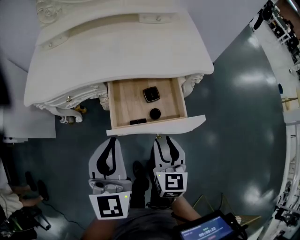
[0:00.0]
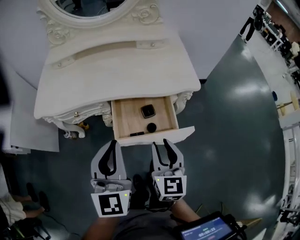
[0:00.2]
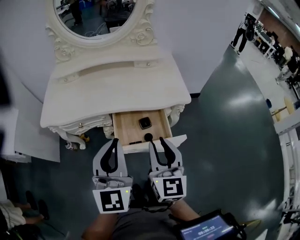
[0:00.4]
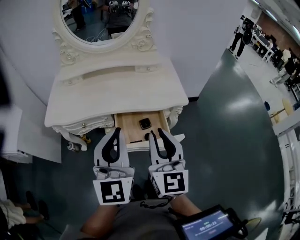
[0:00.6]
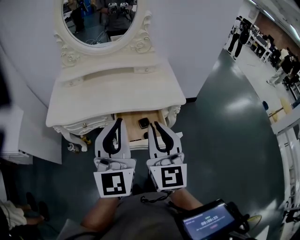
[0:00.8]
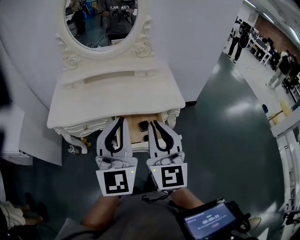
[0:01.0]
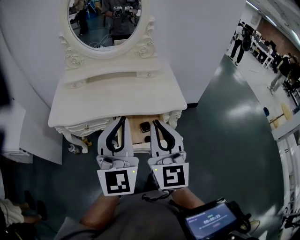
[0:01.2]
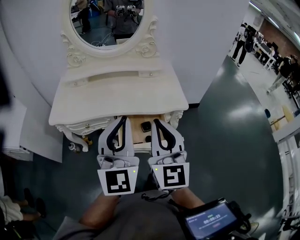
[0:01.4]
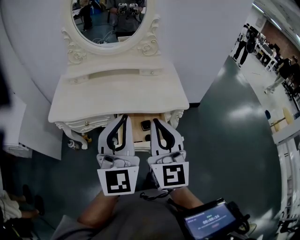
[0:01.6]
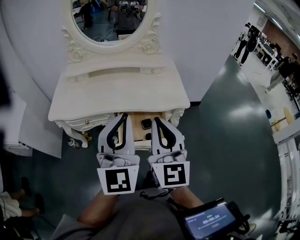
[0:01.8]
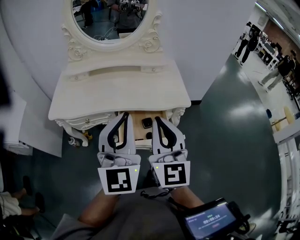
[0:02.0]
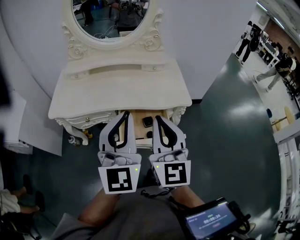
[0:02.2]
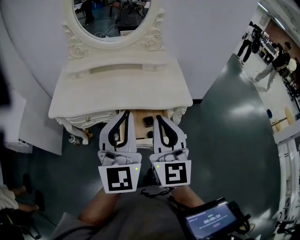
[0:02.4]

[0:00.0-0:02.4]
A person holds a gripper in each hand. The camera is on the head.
0:00.0 to 0:01.2: The two grippers go some 30 cm upward. The right gripper tilts its fingers approximately 30 degrees upward, and closes its fingers; the left gripper changes its angle by approximately 20 degrees.
0:01.2 to 0:02.4: The grippers make only small movements.

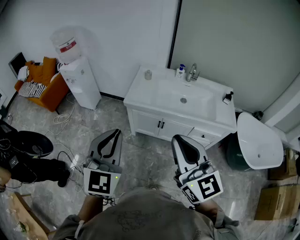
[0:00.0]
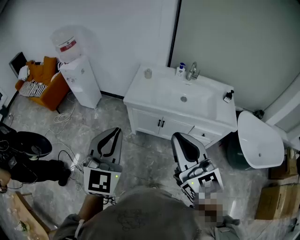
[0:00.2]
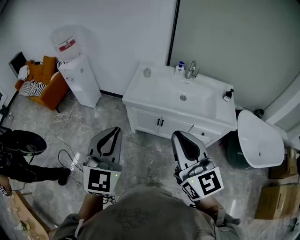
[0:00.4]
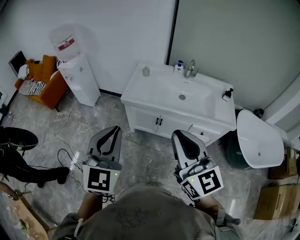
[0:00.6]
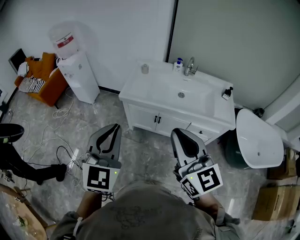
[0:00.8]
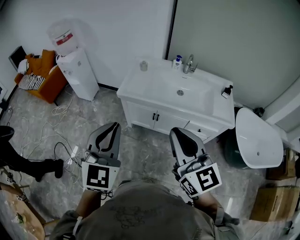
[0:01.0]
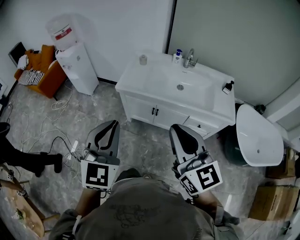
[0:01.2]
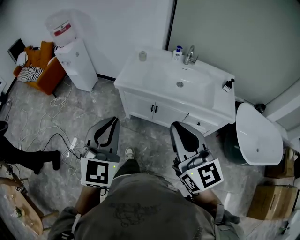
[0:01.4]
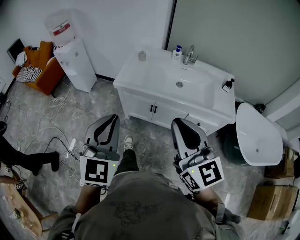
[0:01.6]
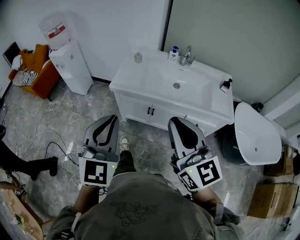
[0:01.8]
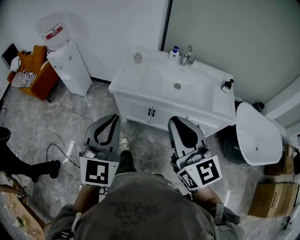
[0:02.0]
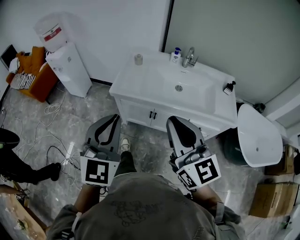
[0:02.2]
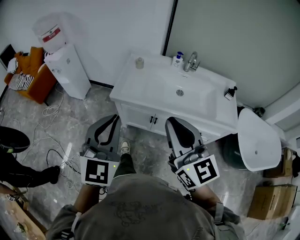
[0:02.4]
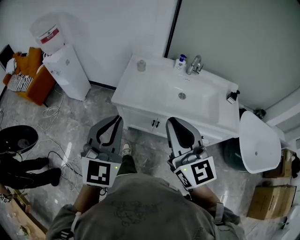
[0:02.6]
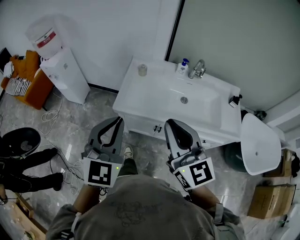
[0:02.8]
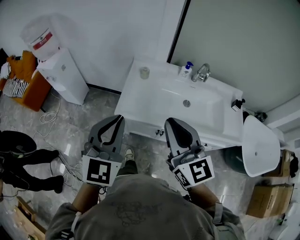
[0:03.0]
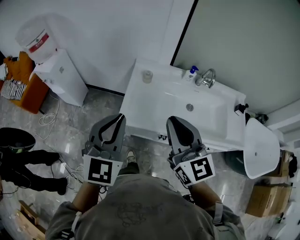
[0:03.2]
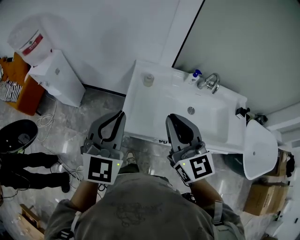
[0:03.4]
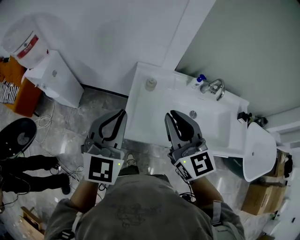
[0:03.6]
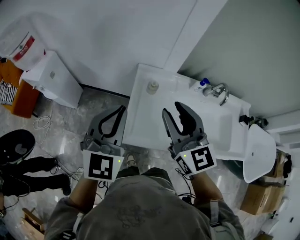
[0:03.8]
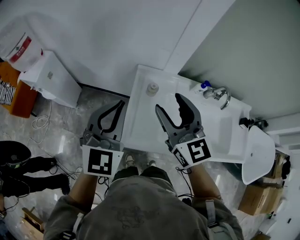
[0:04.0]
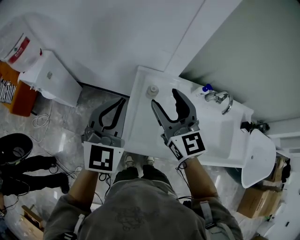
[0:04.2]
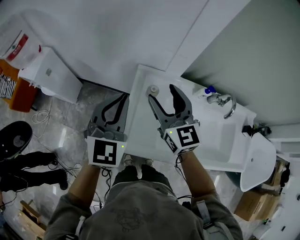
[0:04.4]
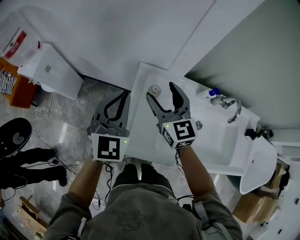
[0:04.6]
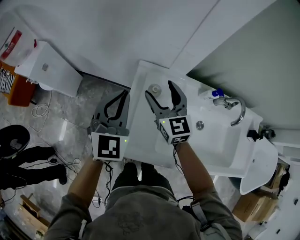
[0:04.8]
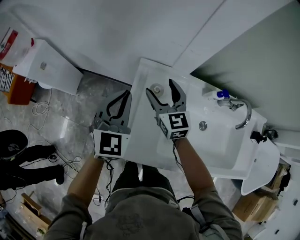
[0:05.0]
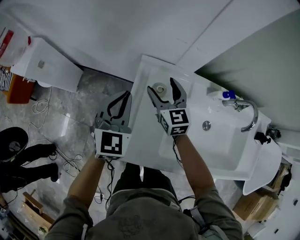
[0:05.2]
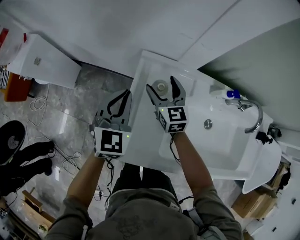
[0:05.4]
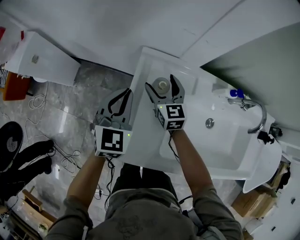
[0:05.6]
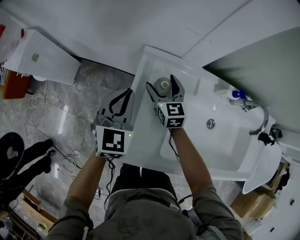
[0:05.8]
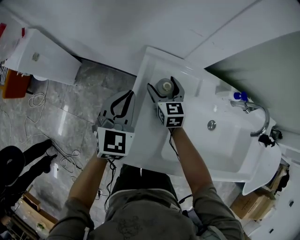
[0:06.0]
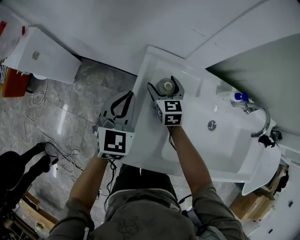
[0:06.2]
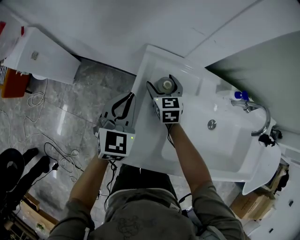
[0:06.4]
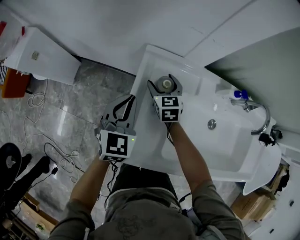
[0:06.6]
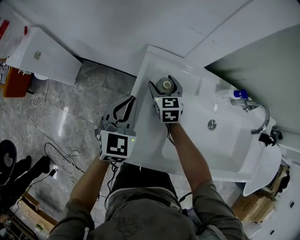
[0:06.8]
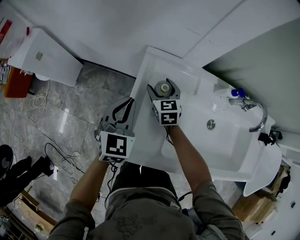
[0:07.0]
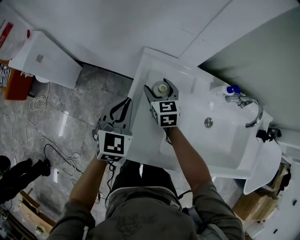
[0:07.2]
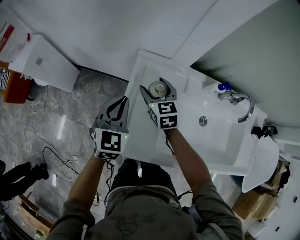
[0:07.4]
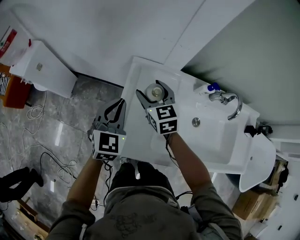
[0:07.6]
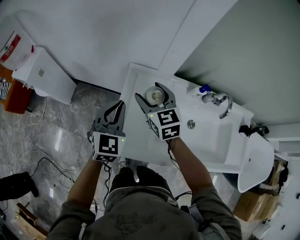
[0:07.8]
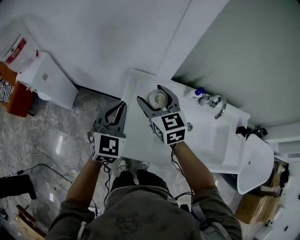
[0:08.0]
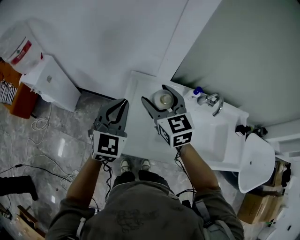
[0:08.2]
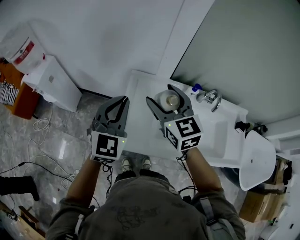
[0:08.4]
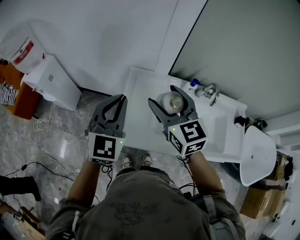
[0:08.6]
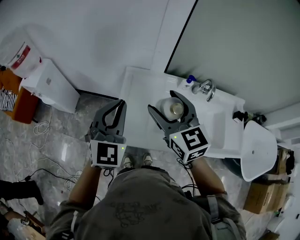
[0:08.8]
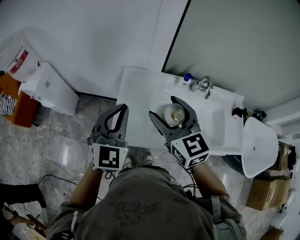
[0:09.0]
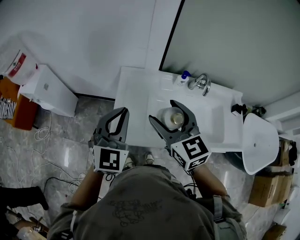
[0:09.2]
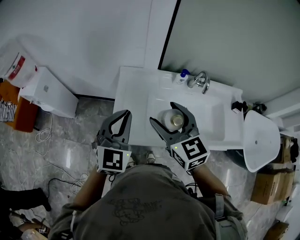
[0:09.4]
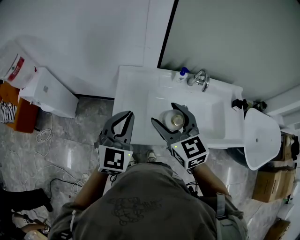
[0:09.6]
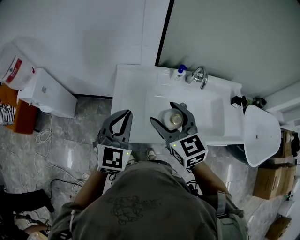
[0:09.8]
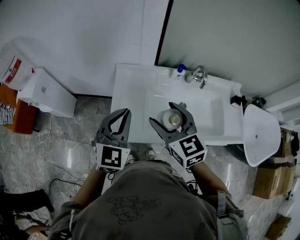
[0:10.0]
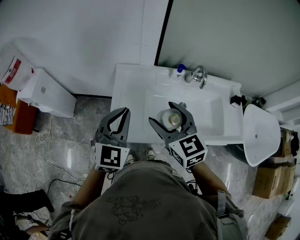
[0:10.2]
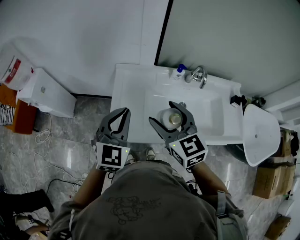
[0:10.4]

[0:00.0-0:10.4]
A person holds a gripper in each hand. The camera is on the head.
0:00.0 to 0:01.4: Both grippers move to the right, some 10 cm.
0:01.4 to 0:03.0: Both grippers travel together forward, some 30 cm.
0:03.0 to 0:04.4: The grippers both shift forward by some 35 cm. The right gripper opens its fingers.
0:04.4 to 0:06.0: Both grippers travel together downward and forward, some 30 cm. The right gripper rotates some 20 degrees.
0:06.0 to 0:07.4: The right gripper heads upward, covering roughly 10 cm; the left gripper travels backward by about 5 cm.
0:07.4 to 0:09.0: Both grippers travel together upward and backward, about 30 cm. The left gripper turns by about 20 degrees.
0:09.0 to 0:10.4: The right gripper changes place by about 5 cm. Meanwhile the left gripper shifts by roughly 5 cm.

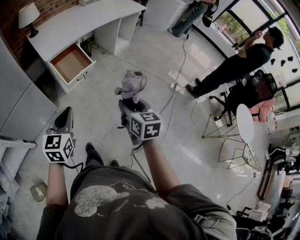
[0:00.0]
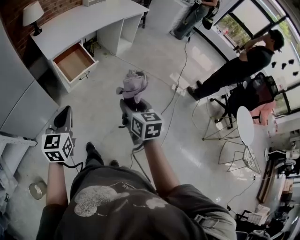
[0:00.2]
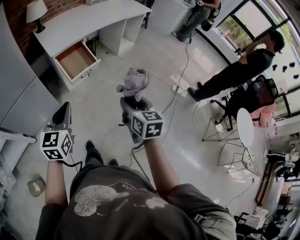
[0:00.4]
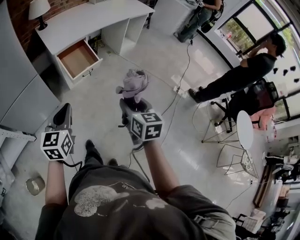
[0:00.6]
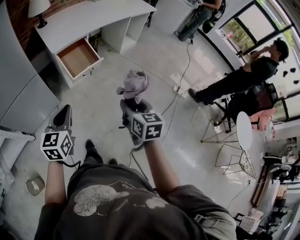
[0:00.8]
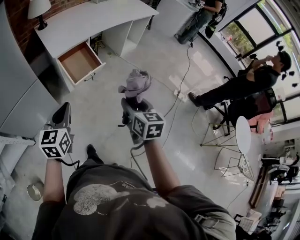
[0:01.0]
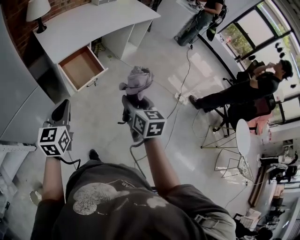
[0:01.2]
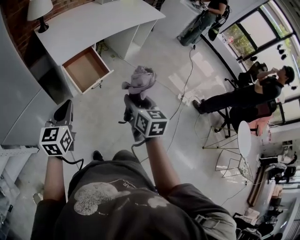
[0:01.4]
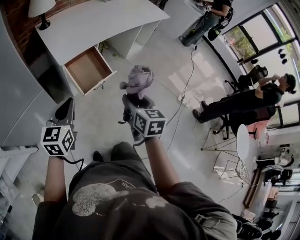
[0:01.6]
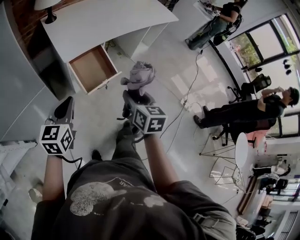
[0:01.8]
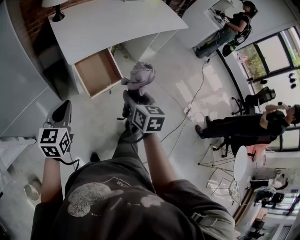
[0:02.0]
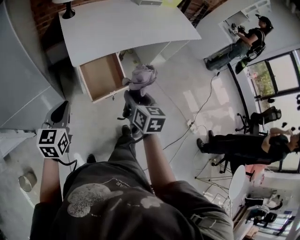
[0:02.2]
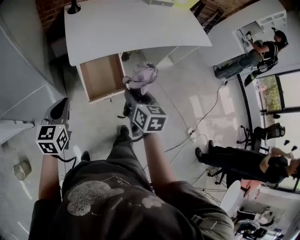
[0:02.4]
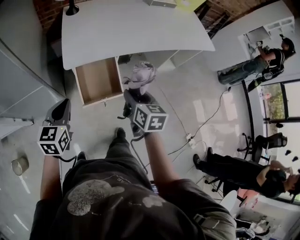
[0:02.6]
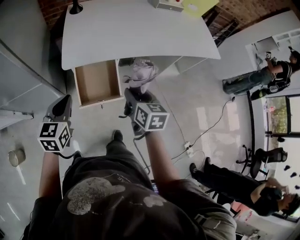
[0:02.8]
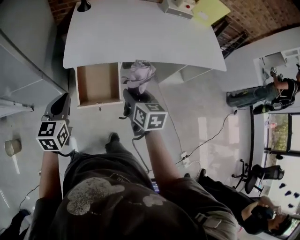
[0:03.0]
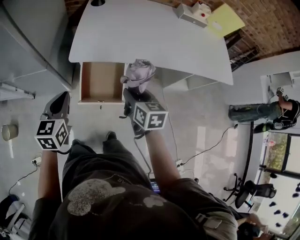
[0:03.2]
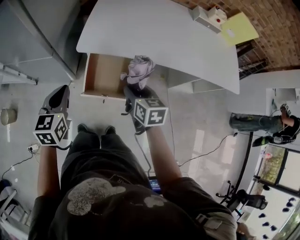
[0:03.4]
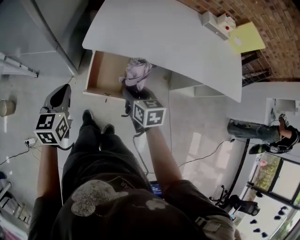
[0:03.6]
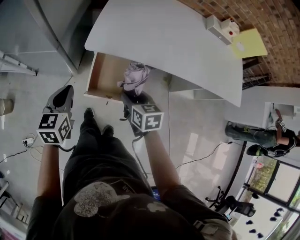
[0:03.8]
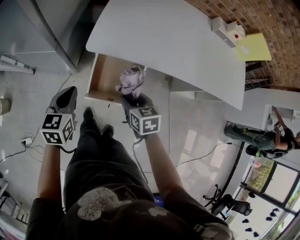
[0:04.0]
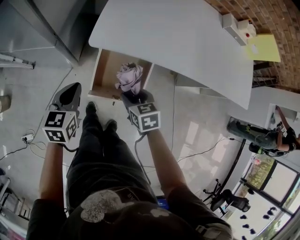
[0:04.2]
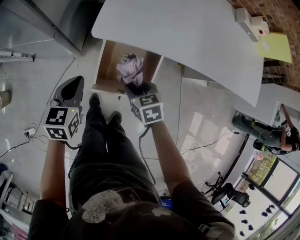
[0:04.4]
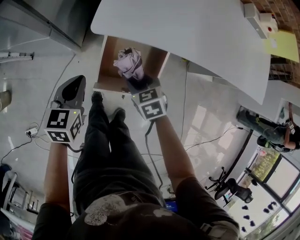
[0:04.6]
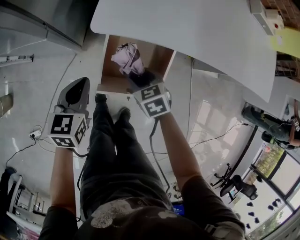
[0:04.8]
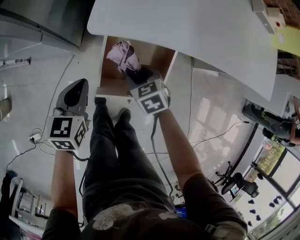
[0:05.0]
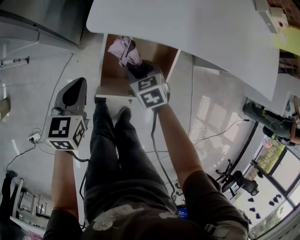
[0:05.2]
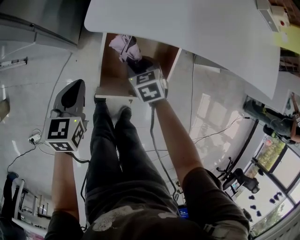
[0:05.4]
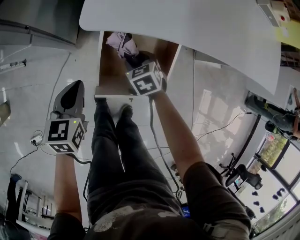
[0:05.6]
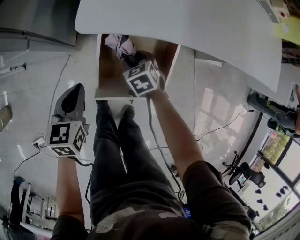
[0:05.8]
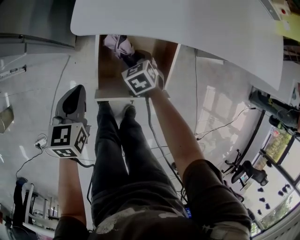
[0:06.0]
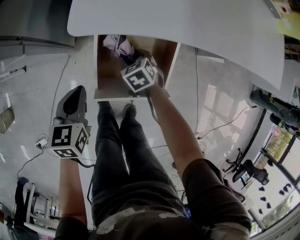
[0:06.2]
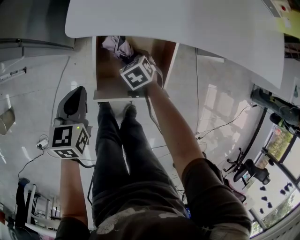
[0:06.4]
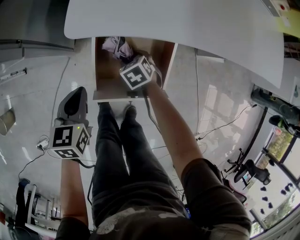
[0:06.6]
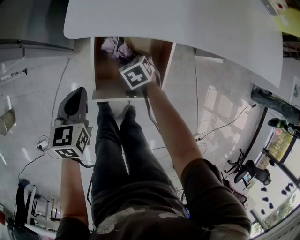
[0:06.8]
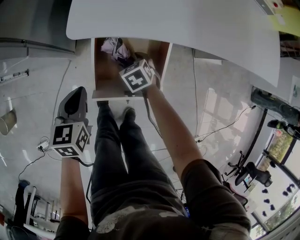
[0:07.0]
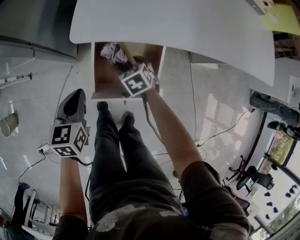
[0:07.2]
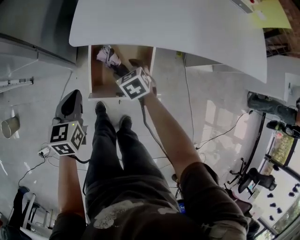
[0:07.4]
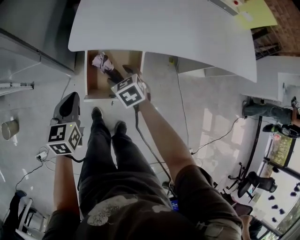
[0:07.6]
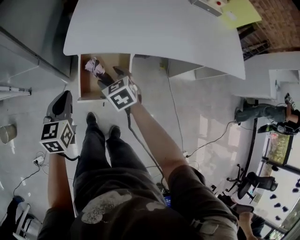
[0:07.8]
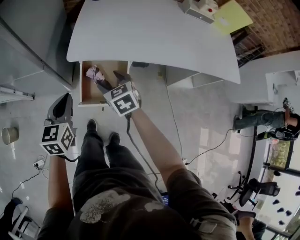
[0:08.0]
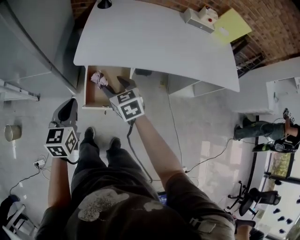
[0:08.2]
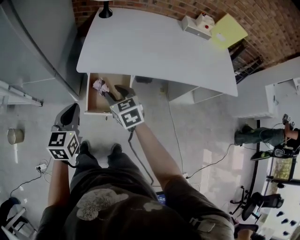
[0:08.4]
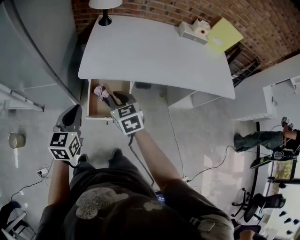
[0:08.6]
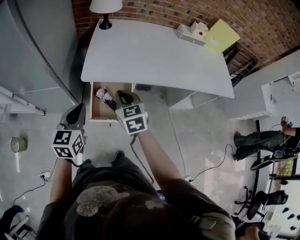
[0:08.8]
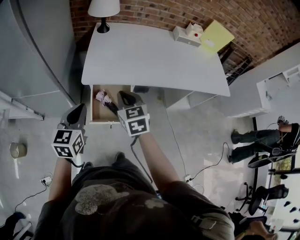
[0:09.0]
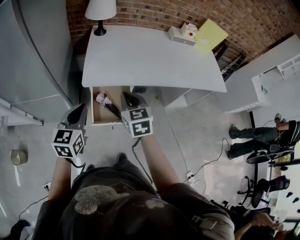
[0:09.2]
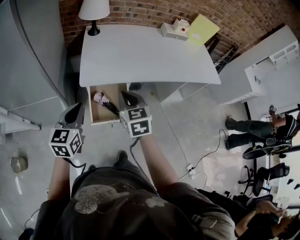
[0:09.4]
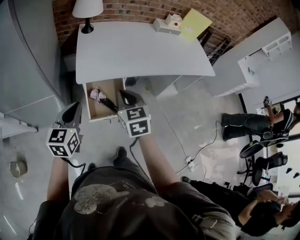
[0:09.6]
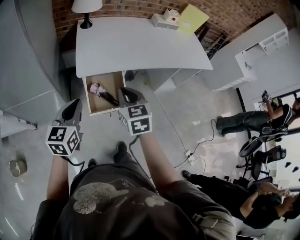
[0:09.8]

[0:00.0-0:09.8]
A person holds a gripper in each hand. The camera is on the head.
0:00.0 to 0:01.4: Both grippers travel together forward and to the left, some 20 cm.
0:01.4 to 0:02.8: The right gripper shifts by about 35 cm, and turns by about 30 degrees. The left gripper changes place by approximately 20 cm, and turns by roughly 30 degrees.
0:02.8 to 0:04.2: Both grippers travel together downward, roughly 15 cm. The left gripper turns by about 20 degrees, while the right gripper changes its angle by some 40 degrees.
0:04.2 to 0:05.6: The right gripper shifts approximately 20 cm downward and forward. Meanwhile the left gripper travels downward by some 10 cm.
0:05.6 to 0:07.0: The grippers make only small movements.
0:07.0 to 0:08.4: The grippers both shift upward by approximately 30 cm. The right gripper points its fingers some 30 degrees further upward, and closes.
0:08.4 to 0:09.8: The left gripper ends up roughly 10 cm from where it was, and changes its angle by approximately 20 degrees; the right gripper moves upward, approximately 10 cm, turns by some 30 degrees, and closes up.

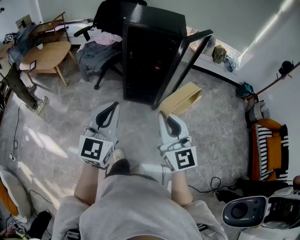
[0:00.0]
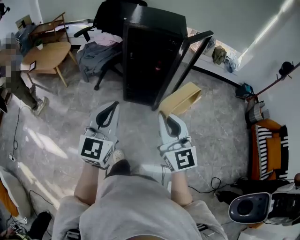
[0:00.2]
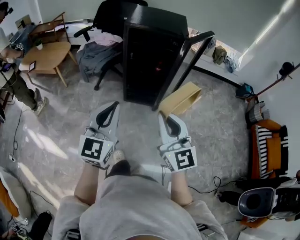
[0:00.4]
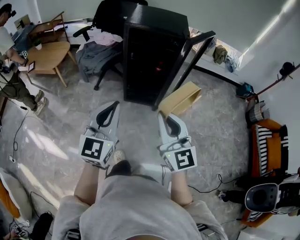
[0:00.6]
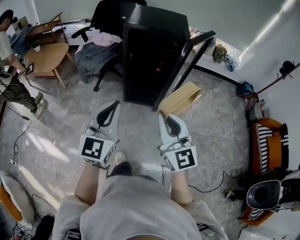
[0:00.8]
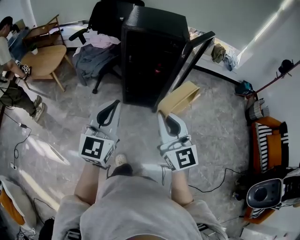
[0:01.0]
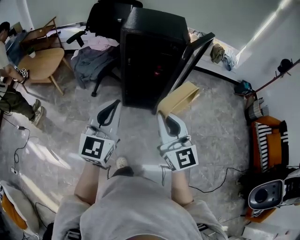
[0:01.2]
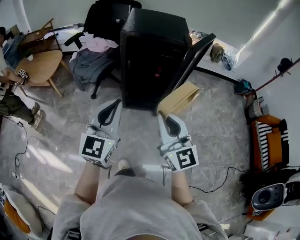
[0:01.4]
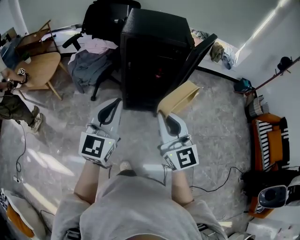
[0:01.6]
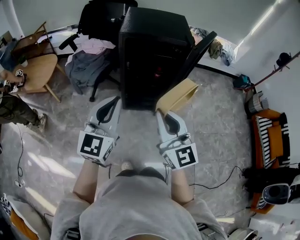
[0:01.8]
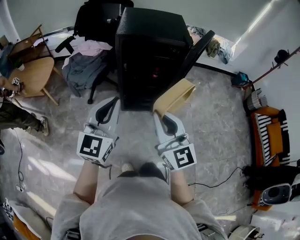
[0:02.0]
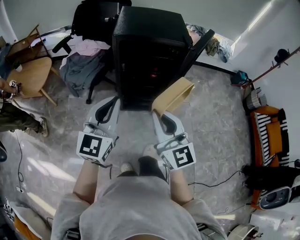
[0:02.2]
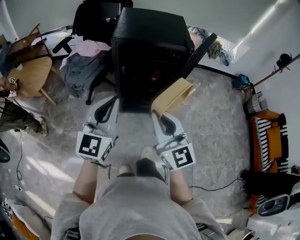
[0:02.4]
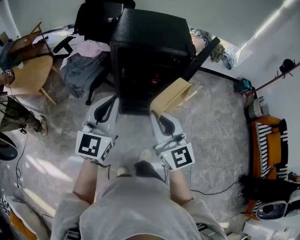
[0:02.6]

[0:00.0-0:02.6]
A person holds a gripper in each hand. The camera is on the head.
0:00.0 to 0:01.2: The grippers both shift forward by approximately 10 cm.
0:01.2 to 0:02.6: The two grippers go about 20 cm forward.
